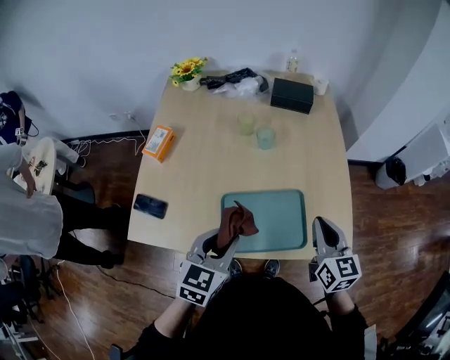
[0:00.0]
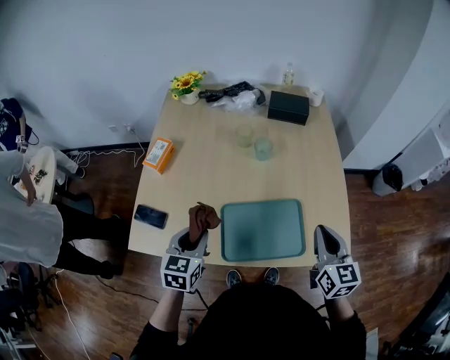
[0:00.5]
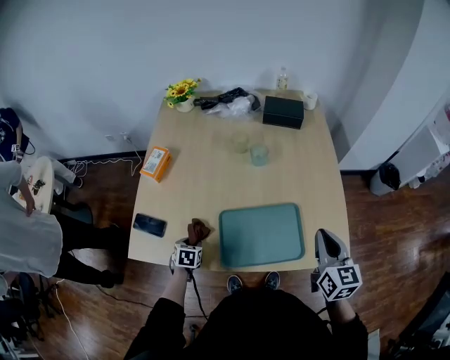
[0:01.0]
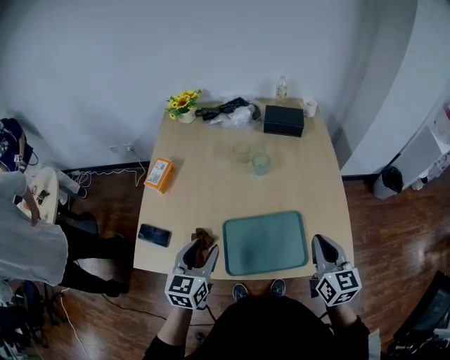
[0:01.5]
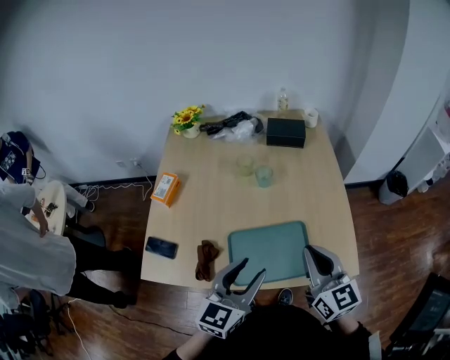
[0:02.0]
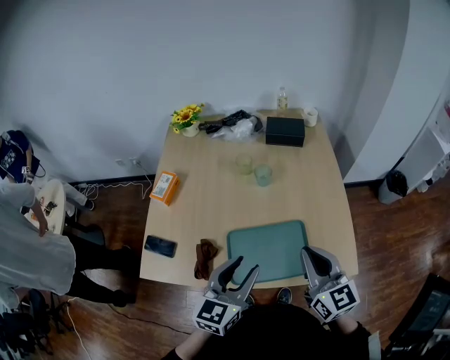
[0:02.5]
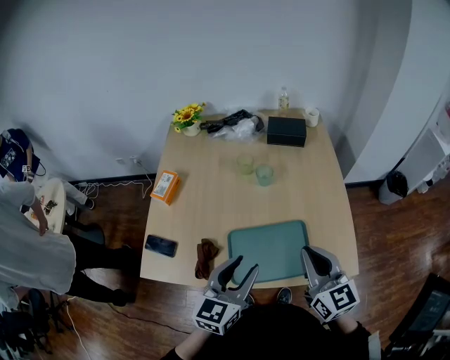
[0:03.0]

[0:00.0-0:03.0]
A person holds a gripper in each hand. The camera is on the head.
0:00.0 to 0:01.5: The left gripper travels to the left by about 10 cm, and travels downward and back again, some 30 cm each way.
0:01.5 to 0:03.0: The left gripper goes some 15 cm to the right and upward. The right gripper moves upward and to the left, about 10 cm.

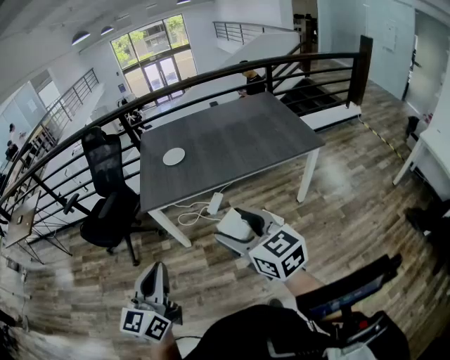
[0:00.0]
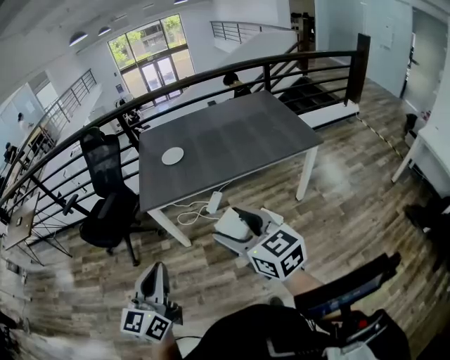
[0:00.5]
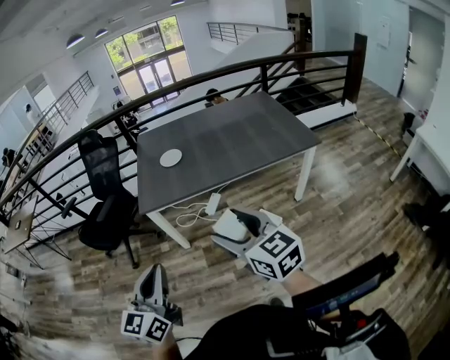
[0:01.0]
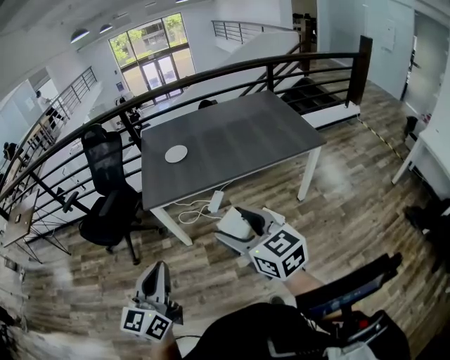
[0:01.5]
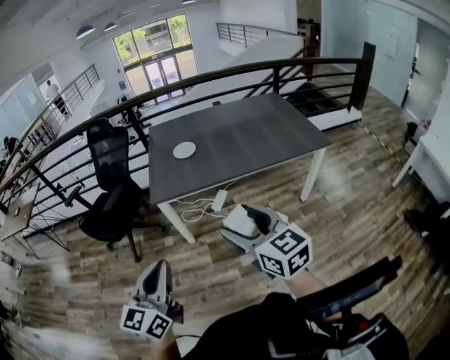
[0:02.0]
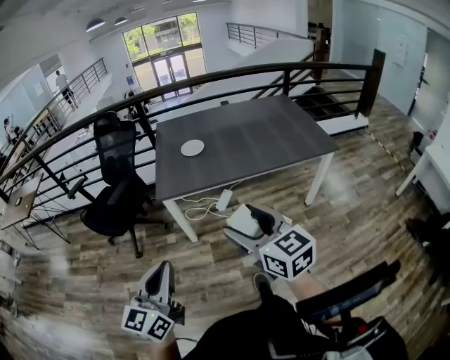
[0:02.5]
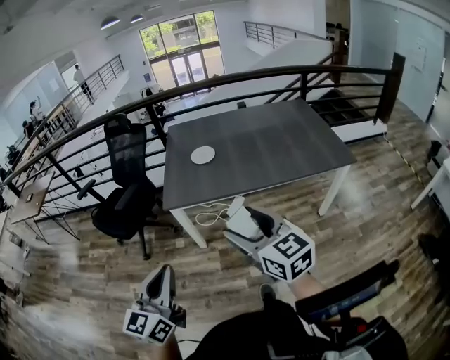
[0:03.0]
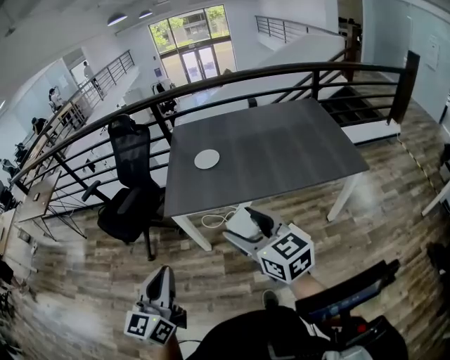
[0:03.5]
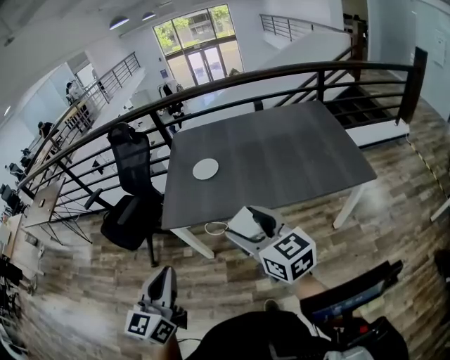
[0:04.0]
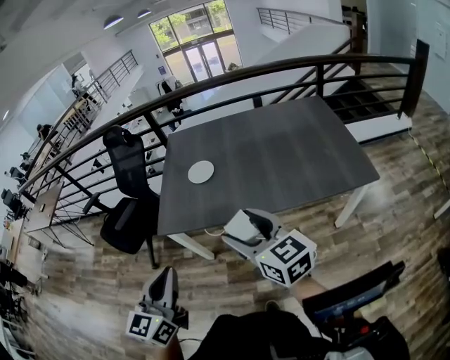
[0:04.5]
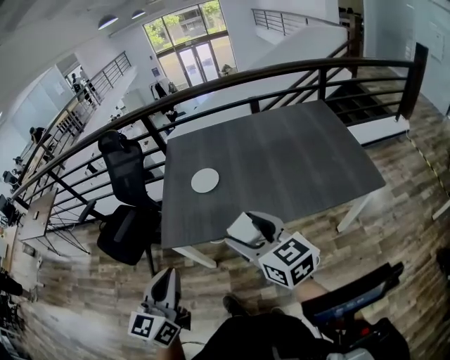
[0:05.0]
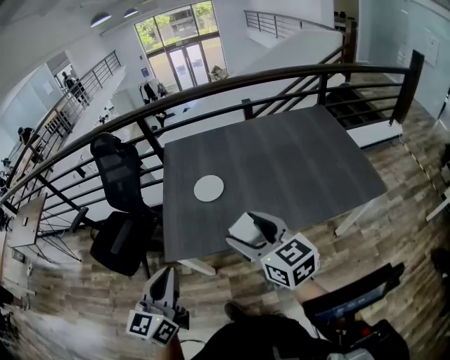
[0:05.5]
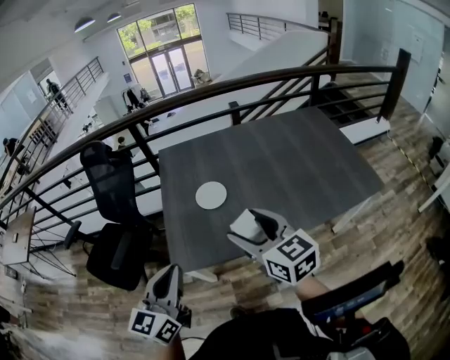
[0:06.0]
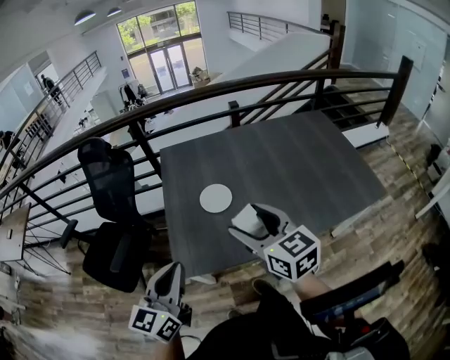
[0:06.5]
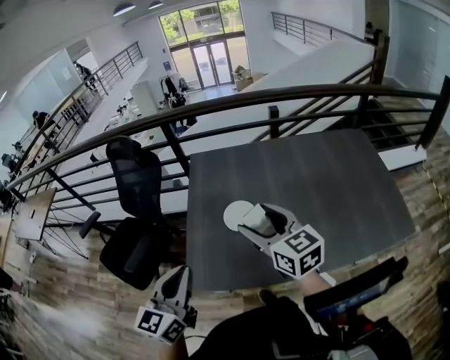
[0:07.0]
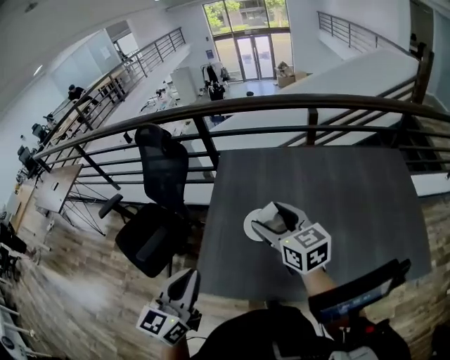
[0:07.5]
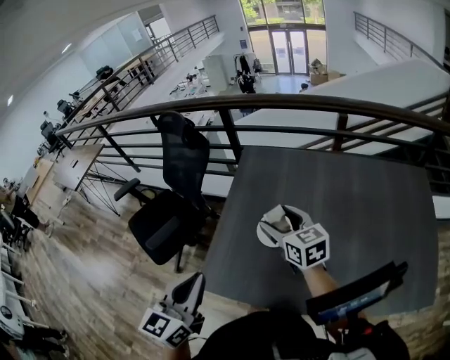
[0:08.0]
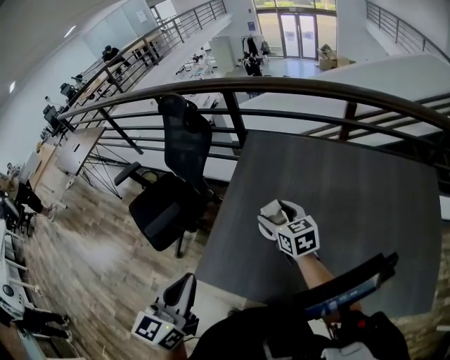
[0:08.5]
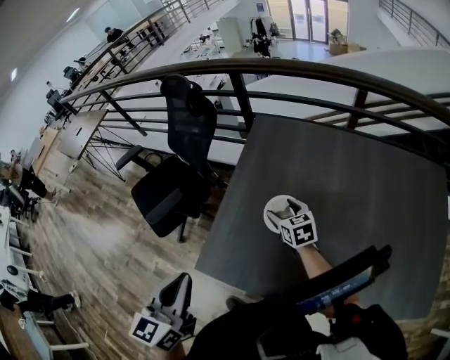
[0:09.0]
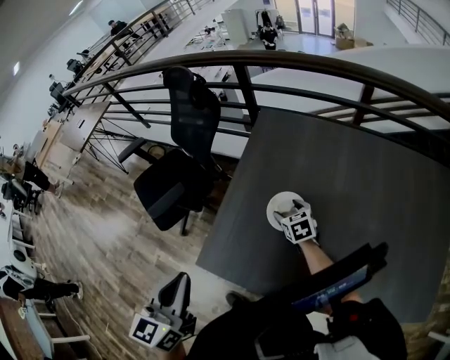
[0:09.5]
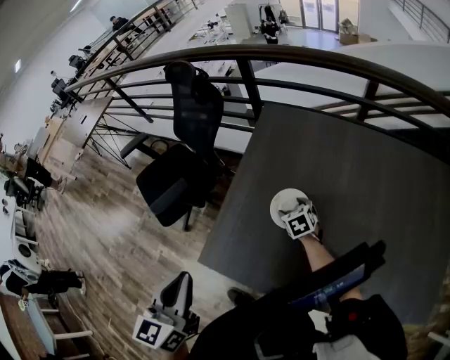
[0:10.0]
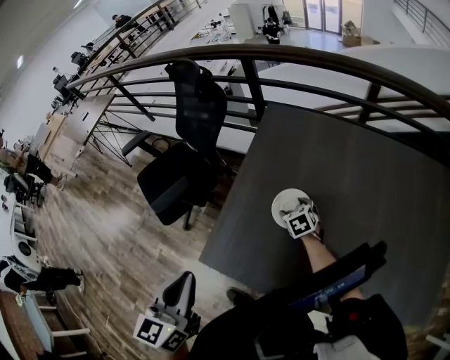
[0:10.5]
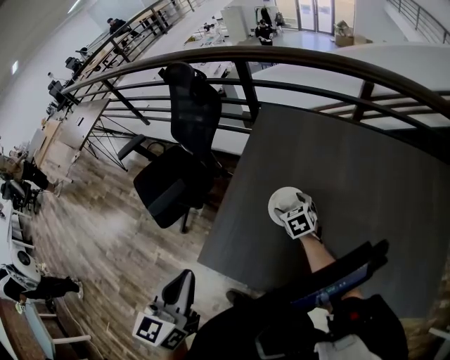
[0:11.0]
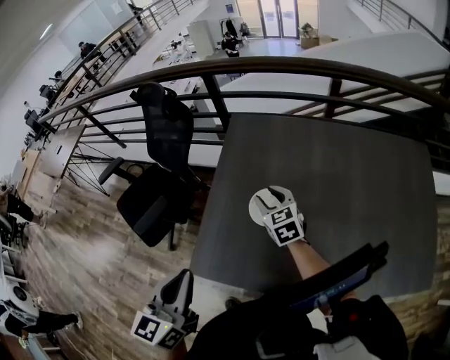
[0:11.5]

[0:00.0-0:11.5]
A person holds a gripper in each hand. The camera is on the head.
0:00.0 to 0:02.0: Both grippers travel together to the left, some 10 cm.
0:02.0 to 0:04.0: The two grippers go approximately 25 cm forward and to the right.
0:04.0 to 0:06.0: The grippers both shift forward by about 25 cm.
0:06.0 to 0:07.5: The right gripper heads forward, covering roughly 25 cm. Meanwhile the left gripper shifts approximately 10 cm forward.
0:07.5 to 0:09.5: The left gripper changes its angle by roughly 20 degrees; the right gripper heads downward and forward, covering approximately 30 cm, and angles its fingers downward, by some 30 degrees.
0:09.5 to 0:11.5: The right gripper is displaced upward by approximately 10 cm, and closes up.

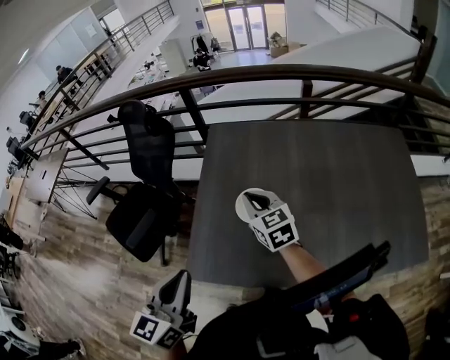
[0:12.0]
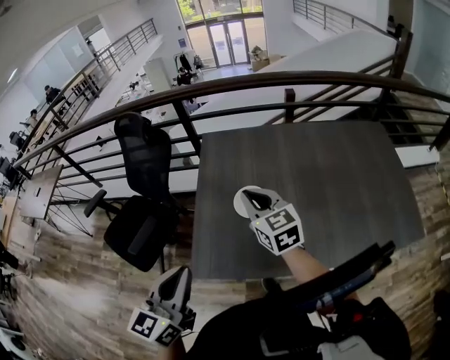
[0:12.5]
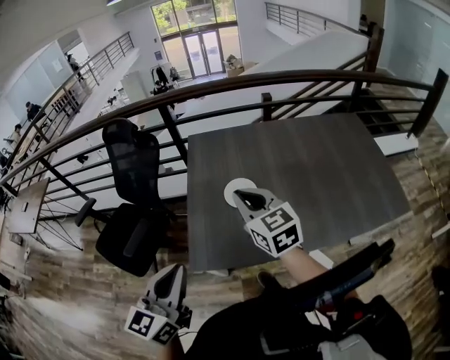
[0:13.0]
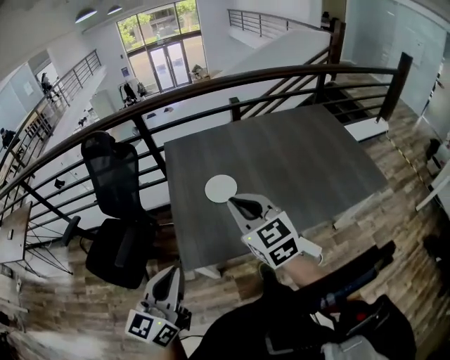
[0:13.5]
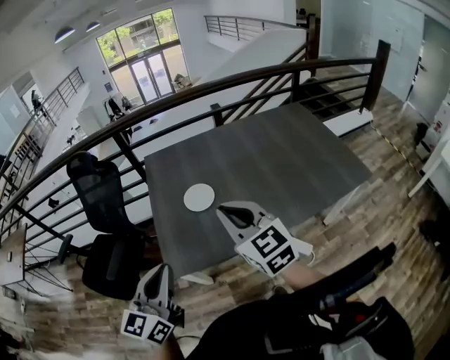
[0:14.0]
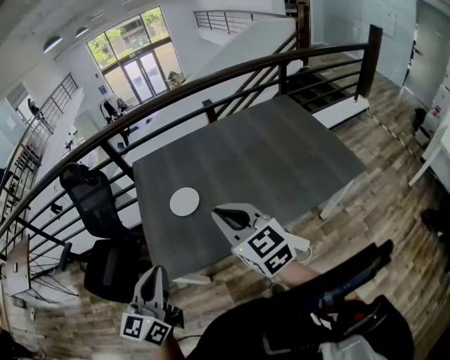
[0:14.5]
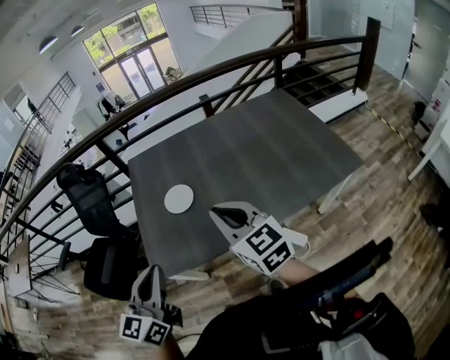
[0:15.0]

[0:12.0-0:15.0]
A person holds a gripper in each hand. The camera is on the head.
0:12.0 to 0:13.5: The right gripper goes approximately 25 cm backward and upward; the left gripper is displaced backward and to the left by approximately 15 cm, and rotates approximately 20 degrees.
0:13.5 to 0:15.0: The two grippers go approximately 15 cm to the right.

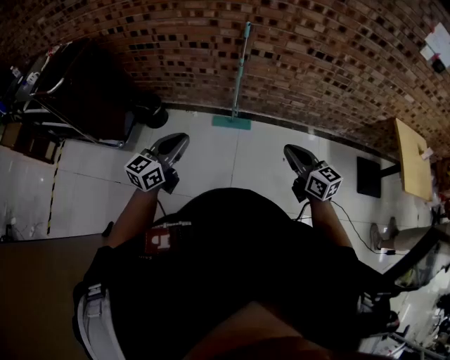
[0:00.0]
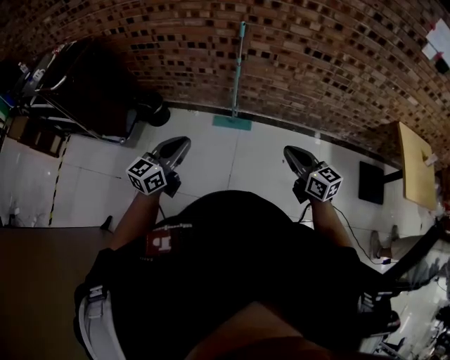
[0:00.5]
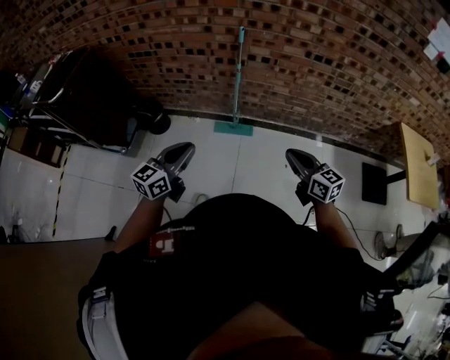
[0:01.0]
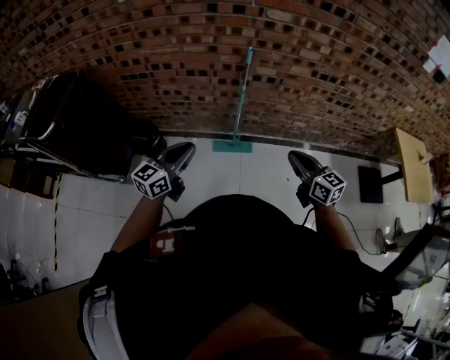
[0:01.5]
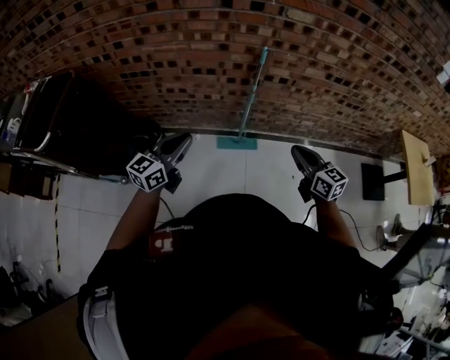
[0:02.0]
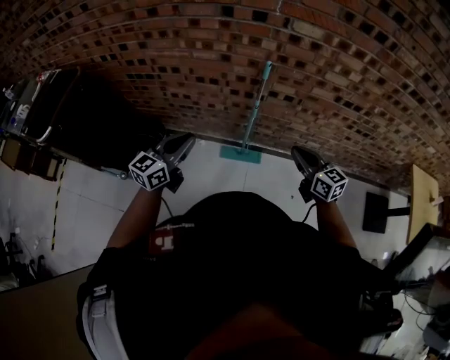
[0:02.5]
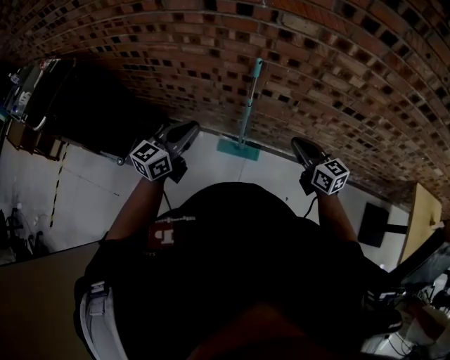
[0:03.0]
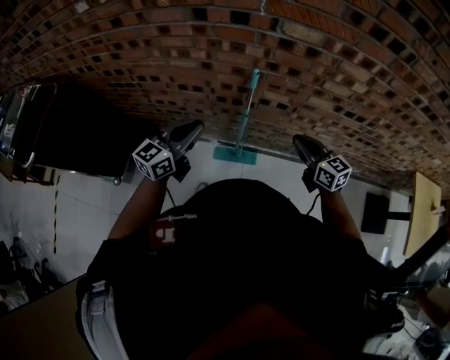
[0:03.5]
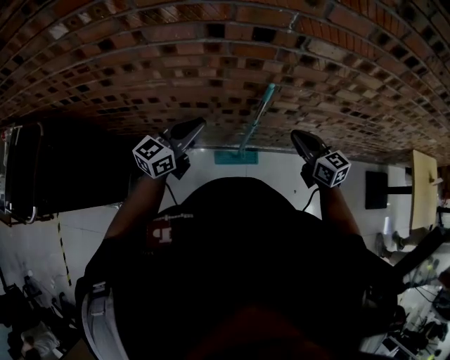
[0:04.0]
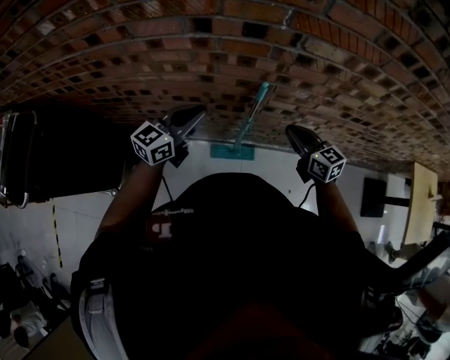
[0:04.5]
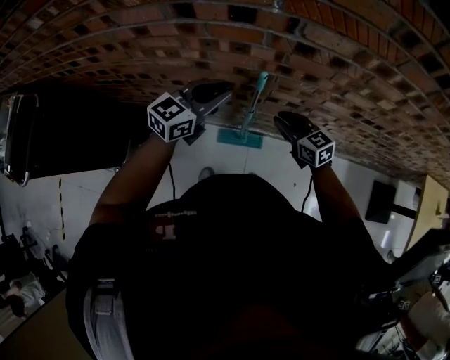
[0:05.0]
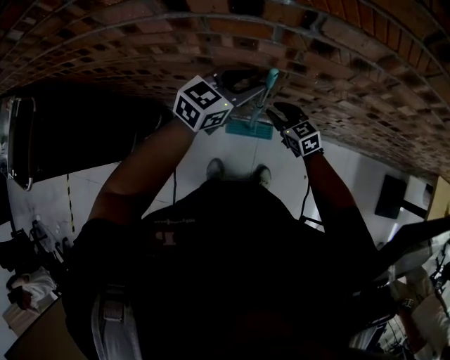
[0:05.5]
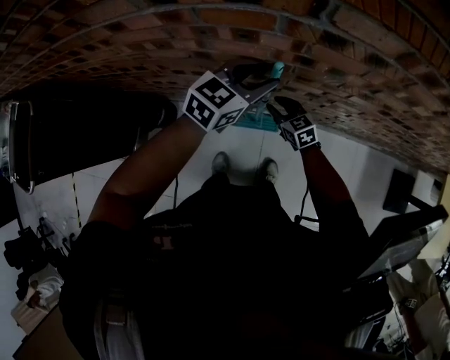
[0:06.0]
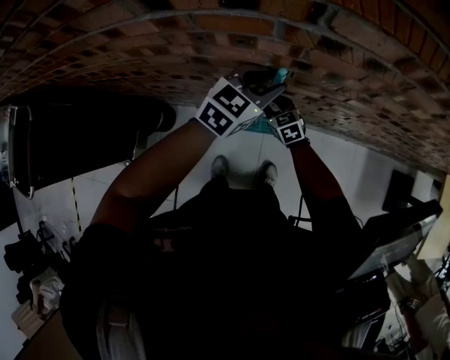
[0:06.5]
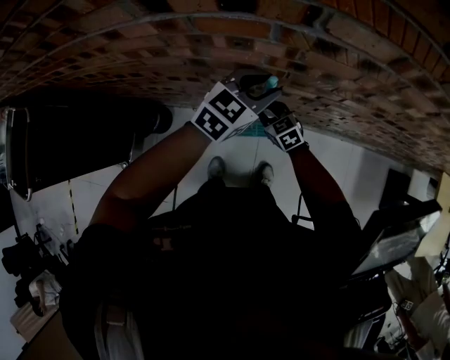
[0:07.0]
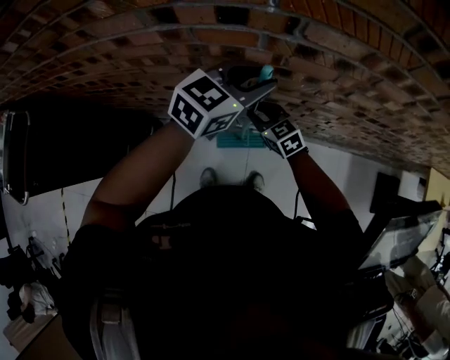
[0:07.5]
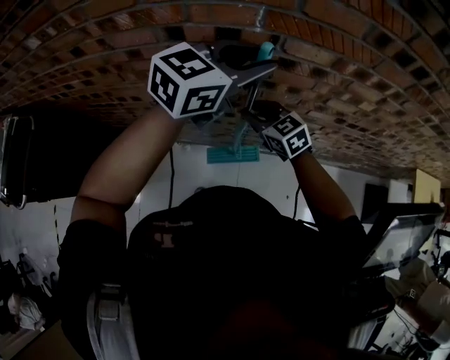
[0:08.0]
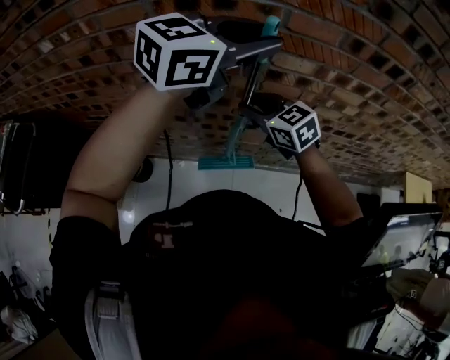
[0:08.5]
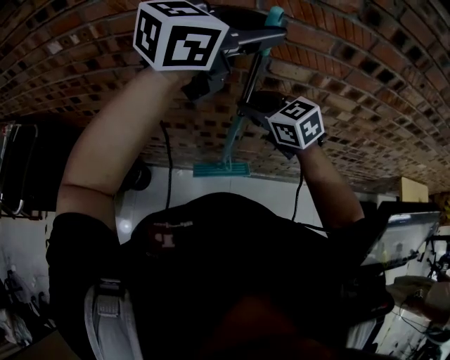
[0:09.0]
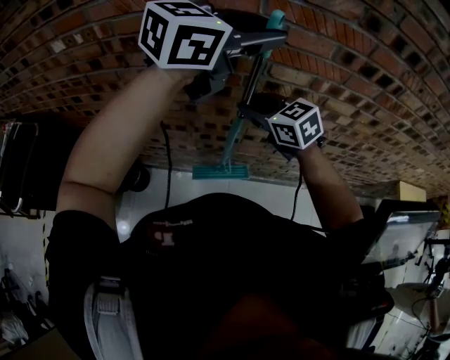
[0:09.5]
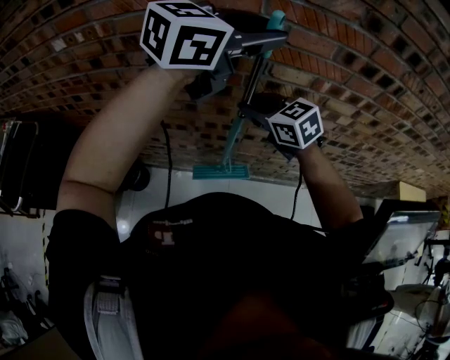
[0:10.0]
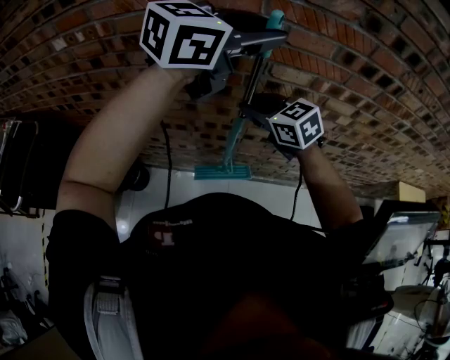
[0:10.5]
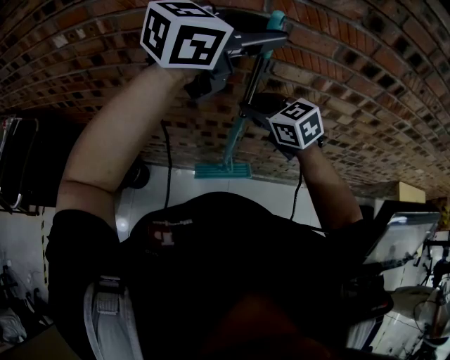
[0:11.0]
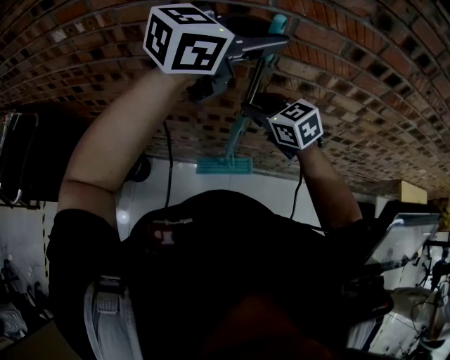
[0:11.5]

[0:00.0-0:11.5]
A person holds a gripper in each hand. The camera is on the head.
0:00.0 to 0:02.0: The two grippers go roughly 25 cm forward.
0:02.0 to 0:04.0: Both grippers move forward, some 30 cm.
0:04.0 to 0:06.0: The left gripper travels to the right and forward by approximately 25 cm, rotates about 20 degrees, and opens. Meanwhile the right gripper travels downward and forward by about 25 cm, changes its angle by roughly 20 degrees, and opens up.
0:06.0 to 0:07.5: The two grippers go some 10 cm upward.
0:07.5 to 0:09.5: The grippers both shift upward by about 30 cm.
0:09.5 to 0:11.5: The grippers stay close to where they were, moving slightly.
